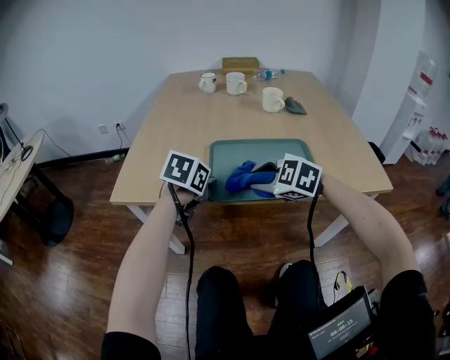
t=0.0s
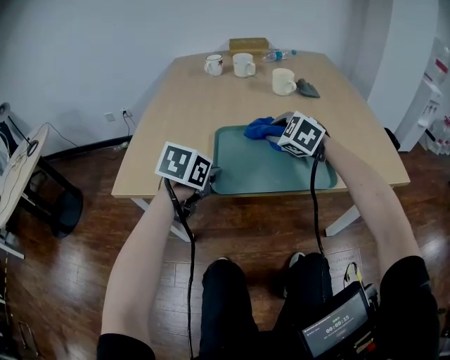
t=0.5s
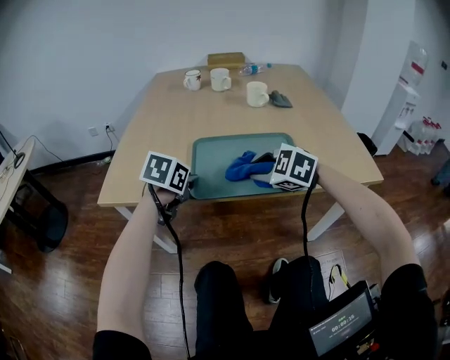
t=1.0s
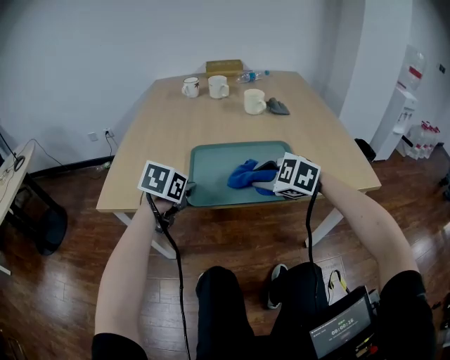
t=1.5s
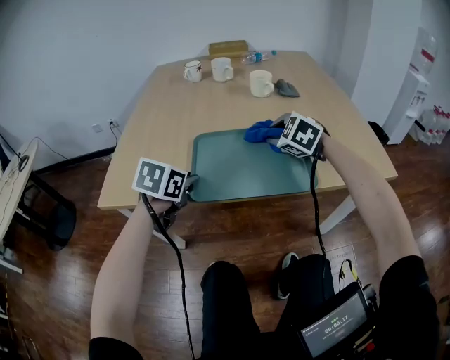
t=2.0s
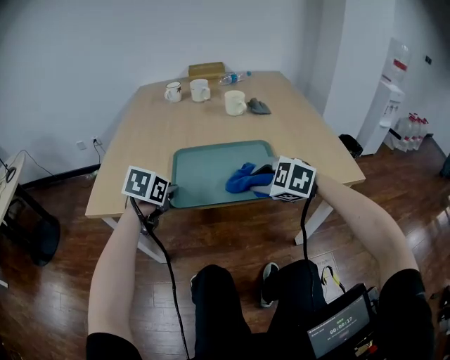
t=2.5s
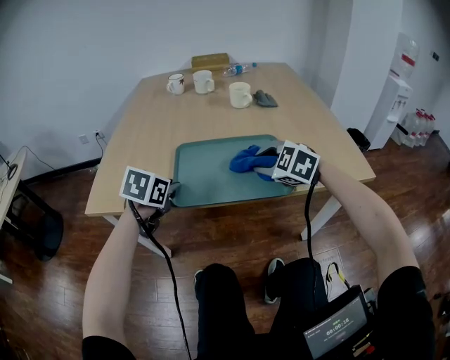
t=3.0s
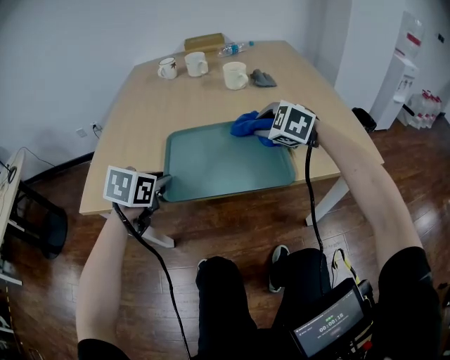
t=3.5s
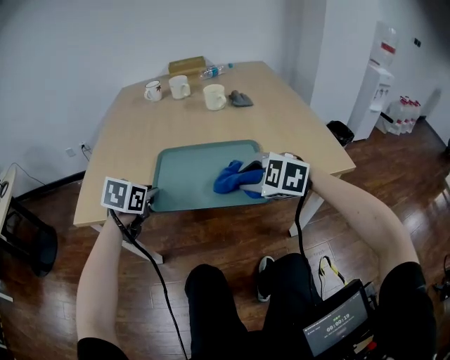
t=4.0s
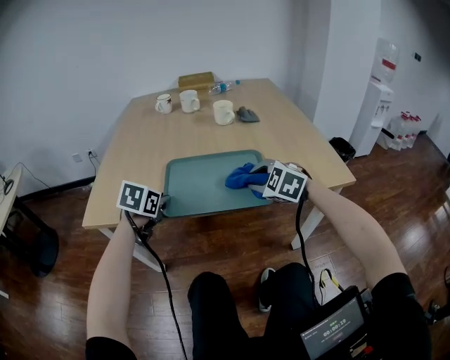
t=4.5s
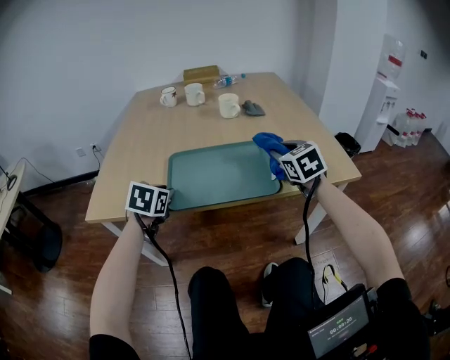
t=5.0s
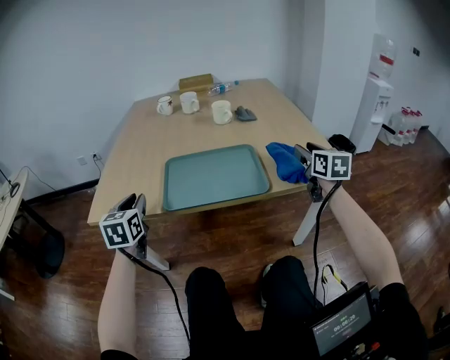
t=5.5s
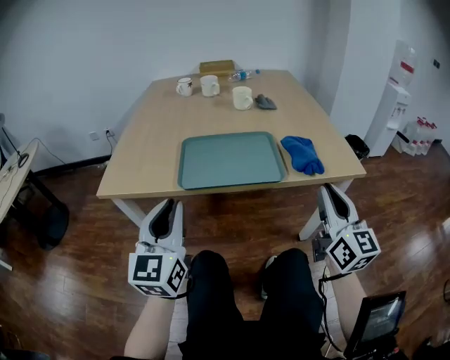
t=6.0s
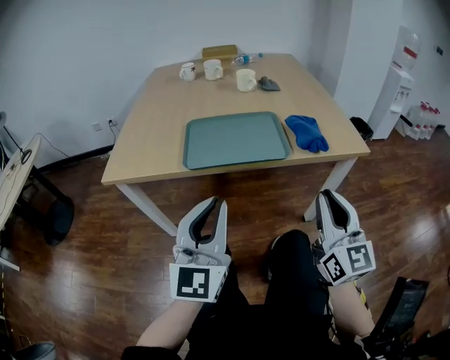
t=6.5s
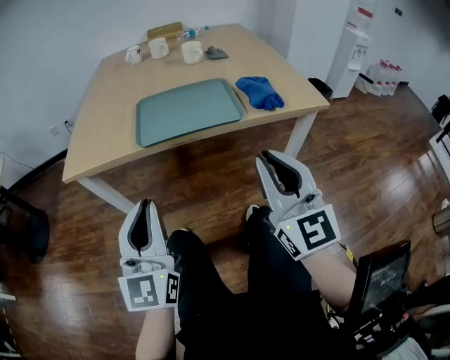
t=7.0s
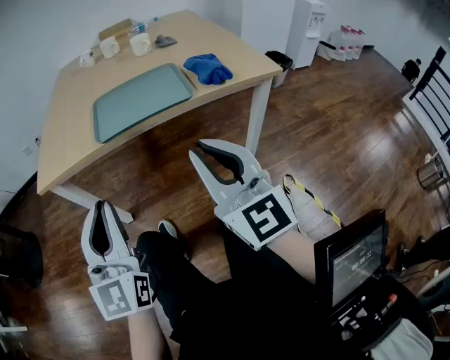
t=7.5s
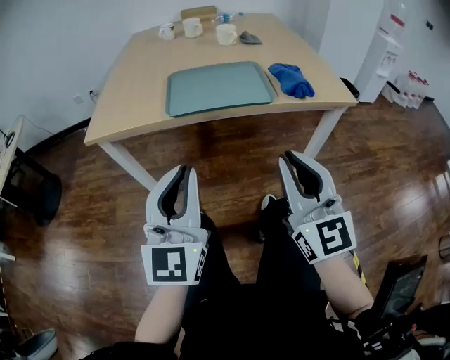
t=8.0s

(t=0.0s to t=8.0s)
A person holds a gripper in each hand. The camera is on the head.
t=0.0s - t=2.0s: The right gripper swings forward and backward, about 15 cm each way, with 2 reversals, and turns by roughly 20 degrees.
t=2.0s - t=4.0s: The right gripper goes forward and backward, some 15 cm each way, reversing 2 times.
t=4.0s - t=6.0s: The left gripper moves backward and upward, approximately 25 cm, and tilts its fingers about 50 degrees upward. The right gripper is displaced backward, to the right and upward by approximately 25 cm, and tilts its fingers about 50 degrees upward.
t=6.0s - t=8.0s: The left gripper heads backward and to the right, covering roughly 15 cm; the right gripper goes approximately 15 cm backward and to the left.

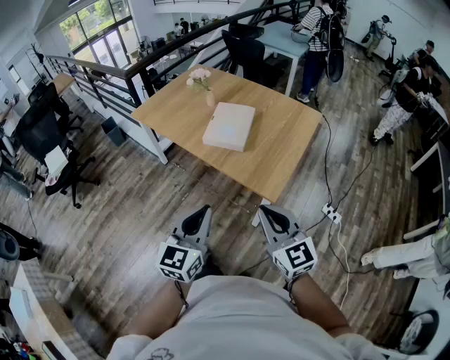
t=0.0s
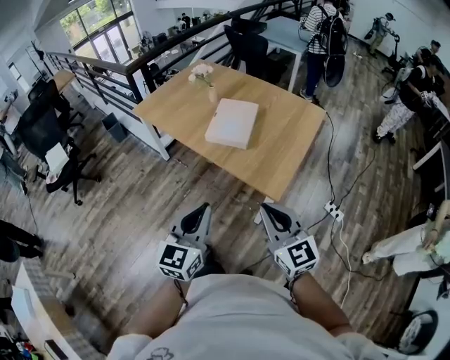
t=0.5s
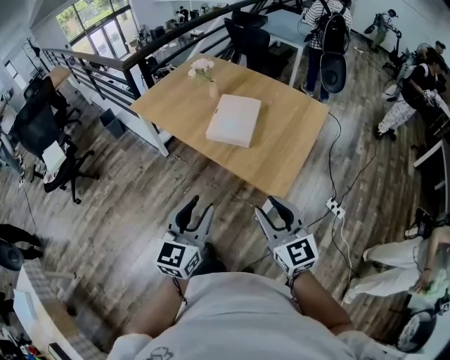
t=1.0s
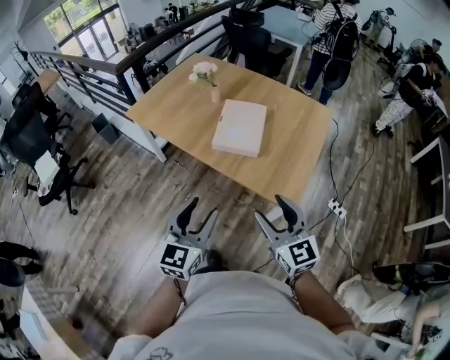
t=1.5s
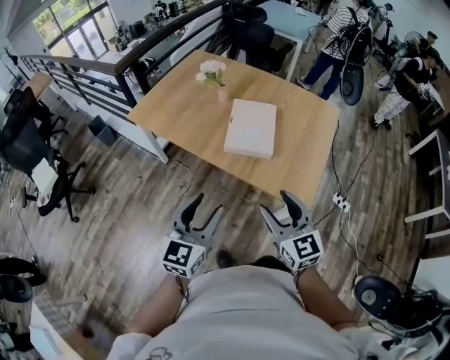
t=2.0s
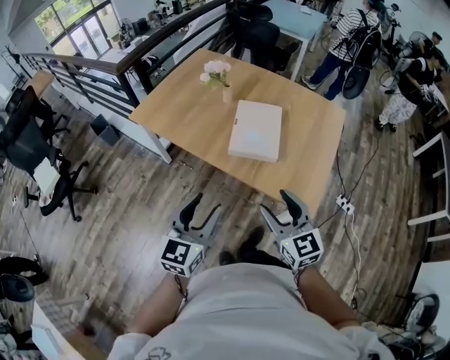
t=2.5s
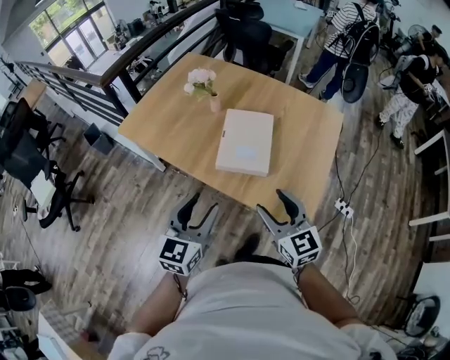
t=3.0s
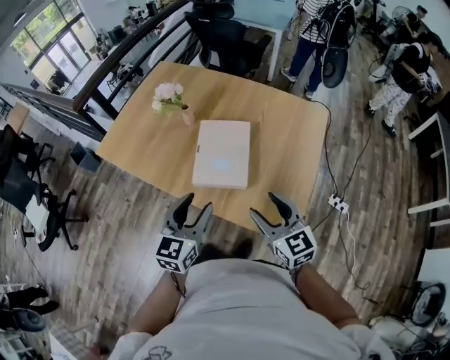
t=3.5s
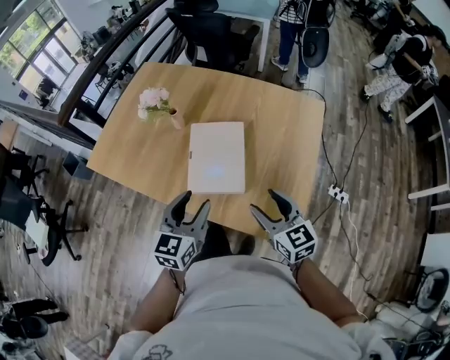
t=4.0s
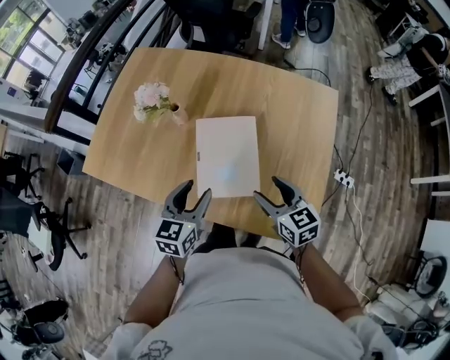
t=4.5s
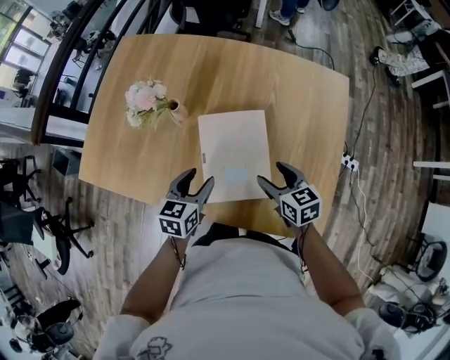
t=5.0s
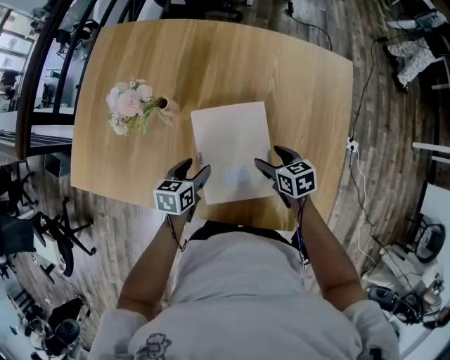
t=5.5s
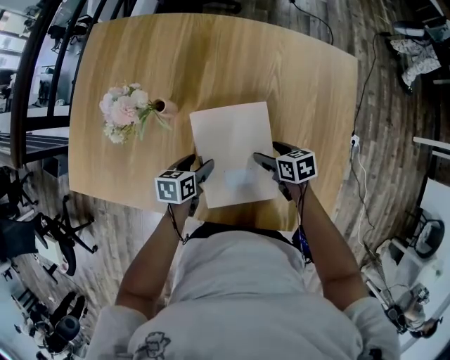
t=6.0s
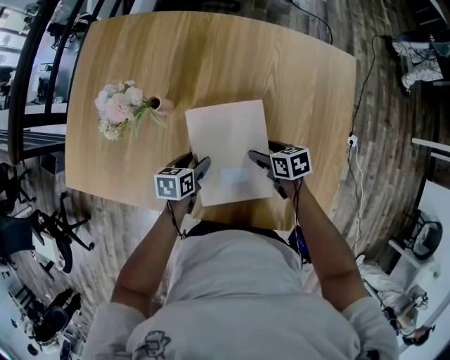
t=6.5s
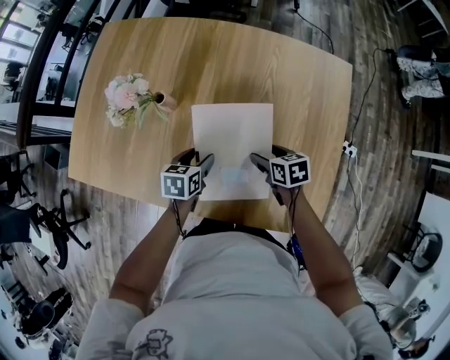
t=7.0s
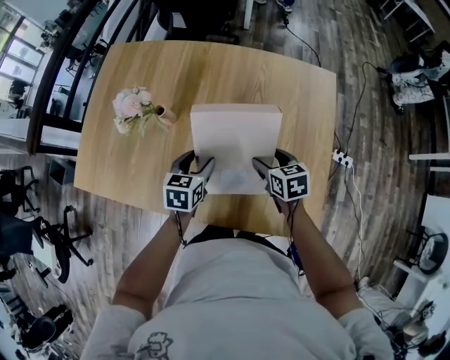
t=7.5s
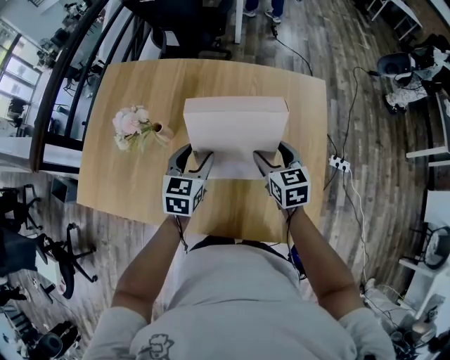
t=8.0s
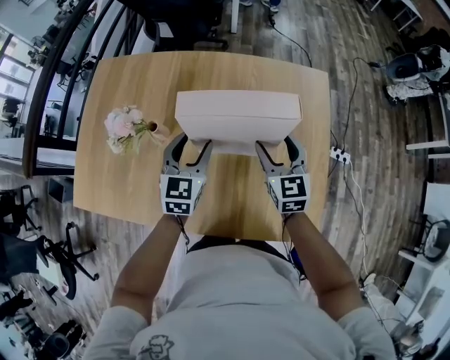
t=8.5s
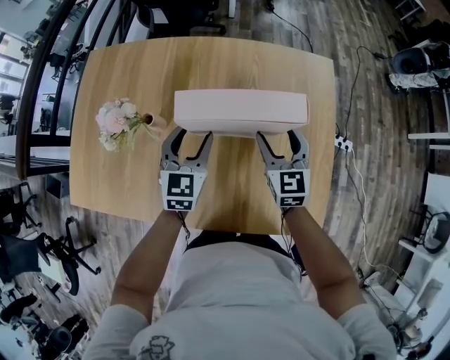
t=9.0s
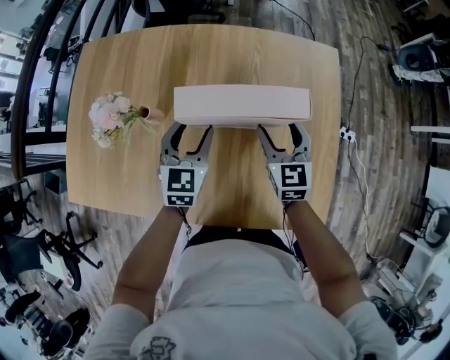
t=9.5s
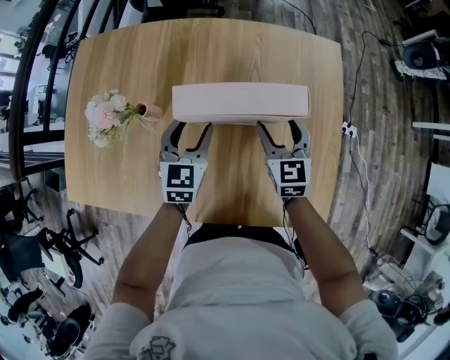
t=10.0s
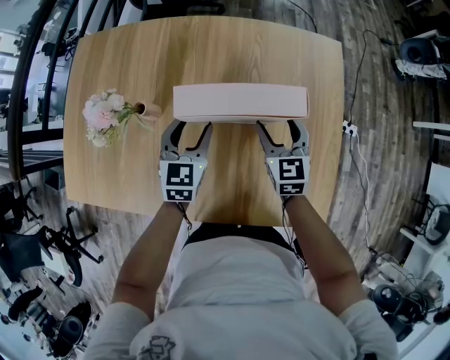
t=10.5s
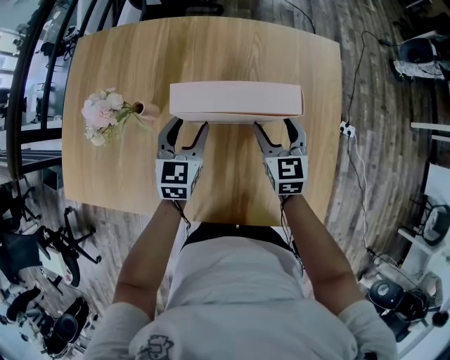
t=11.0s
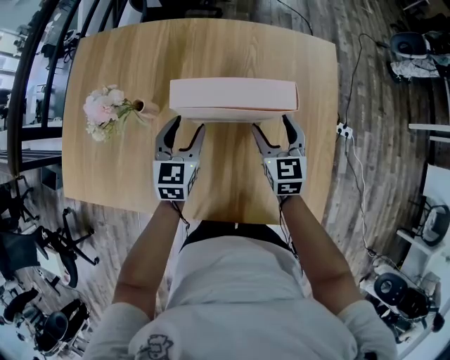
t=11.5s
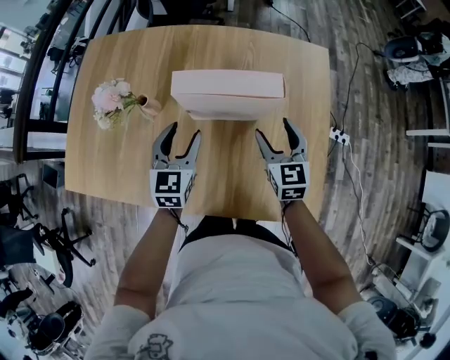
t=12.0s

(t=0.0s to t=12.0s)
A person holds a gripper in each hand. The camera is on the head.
t=0.0s - t=2.0s: Both grippers travel together forward and to the left, approximately 25 cm. The right gripper opens up. Meanwhile the left gripper opens up.
t=2.0s - t=4.0s: The two grippers go about 25 cm forward and to the right.
t=4.0s - t=6.0s: The grippers both shift downward and forward by some 35 cm. The right gripper angles its fingers downward, by roughly 30 degrees, while the left gripper turns by approximately 50 degrees.
t=6.0s - t=8.0s: The two grippers go approximately 20 cm upward. The left gripper rotates some 40 degrees. The right gripper swivels roughly 40 degrees.
t=8.0s - t=10.0s: The left gripper shifts by about 5 cm. Meanwhile the right gripper ends up roughly 5 cm from where it was.
t=10.0s - t=12.0s: The grippers both shift backward by approximately 5 cm.

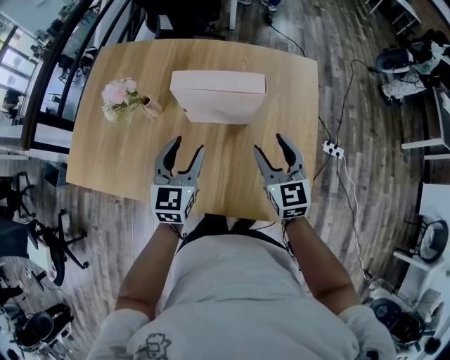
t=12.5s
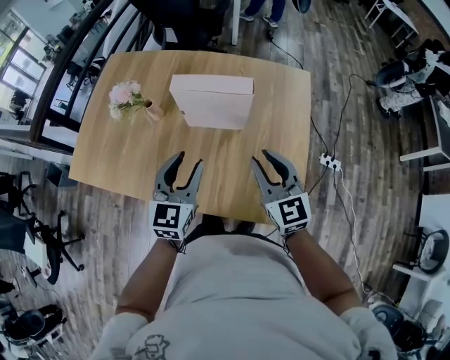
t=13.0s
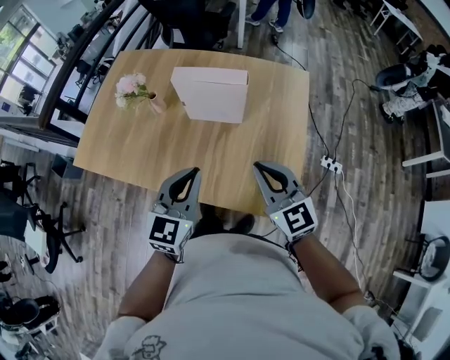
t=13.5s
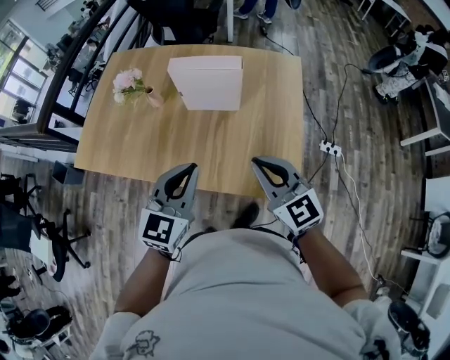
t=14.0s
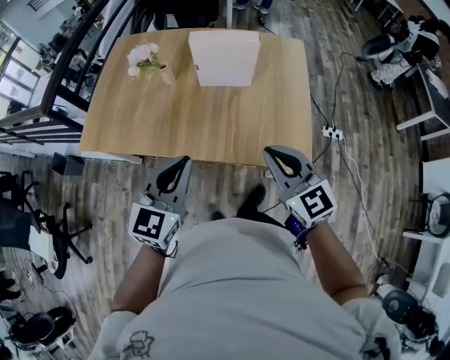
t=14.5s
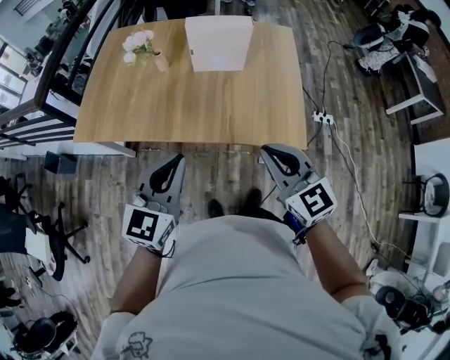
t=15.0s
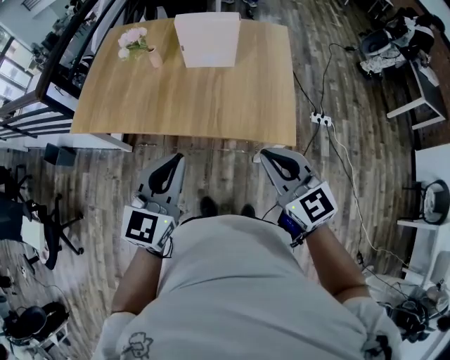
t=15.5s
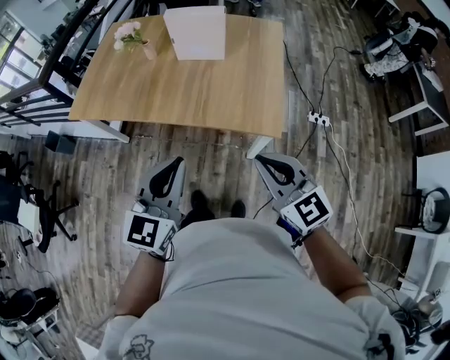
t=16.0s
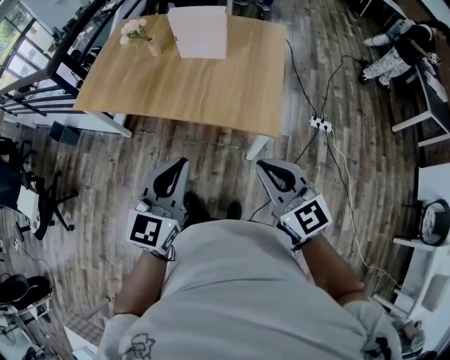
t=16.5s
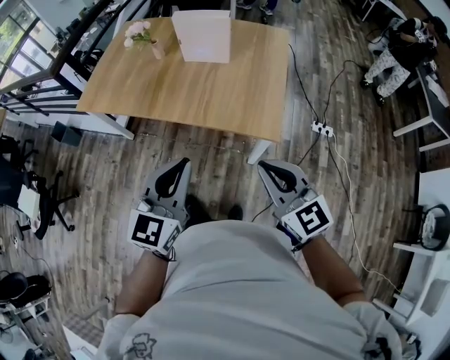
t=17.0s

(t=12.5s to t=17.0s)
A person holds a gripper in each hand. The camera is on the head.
t=12.5s - t=14.5s: The two grippers go some 25 cm backward. The left gripper closes up. The right gripper closes.
t=14.5s - t=17.0s: The two grippers go some 25 cm backward and to the right.

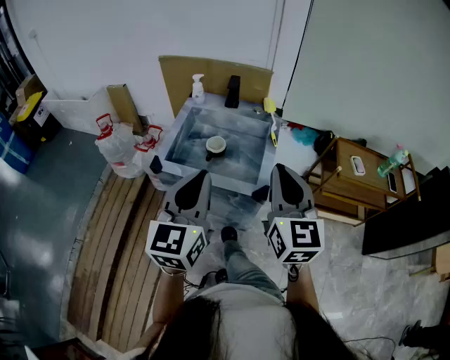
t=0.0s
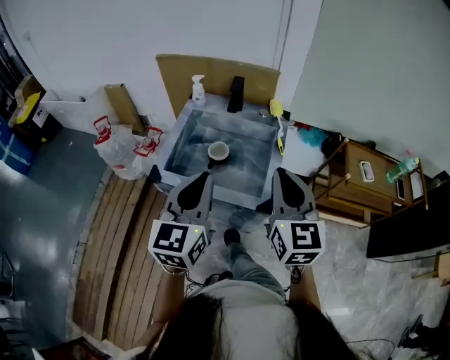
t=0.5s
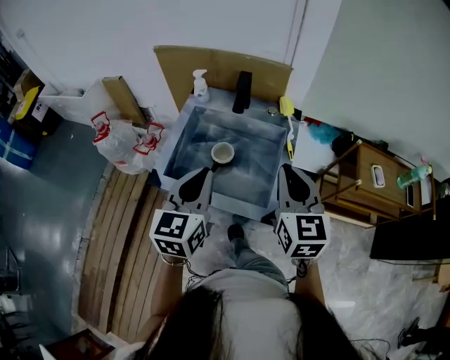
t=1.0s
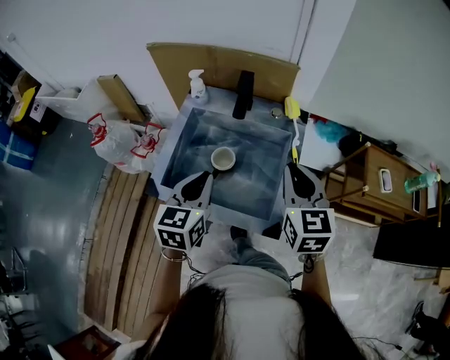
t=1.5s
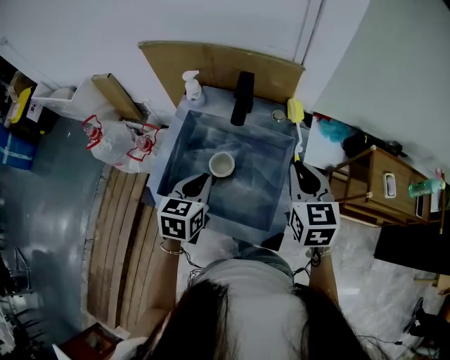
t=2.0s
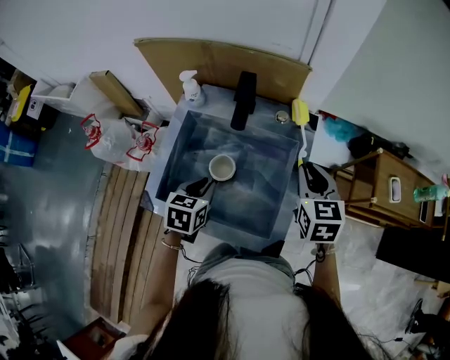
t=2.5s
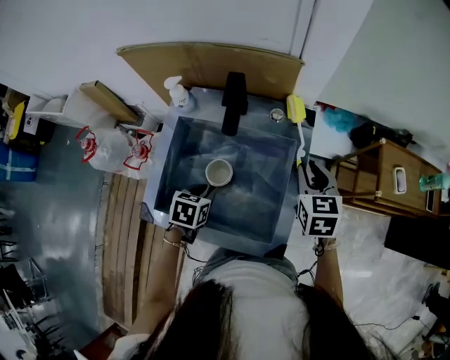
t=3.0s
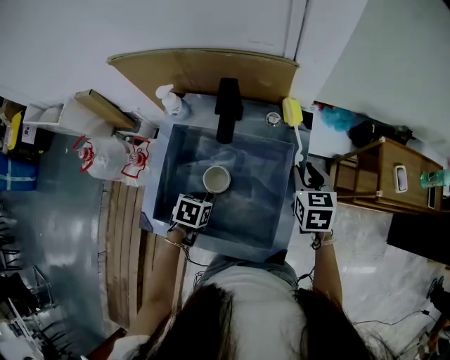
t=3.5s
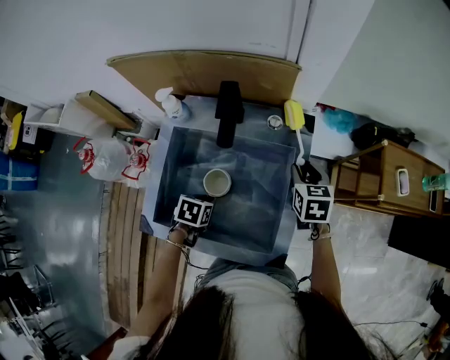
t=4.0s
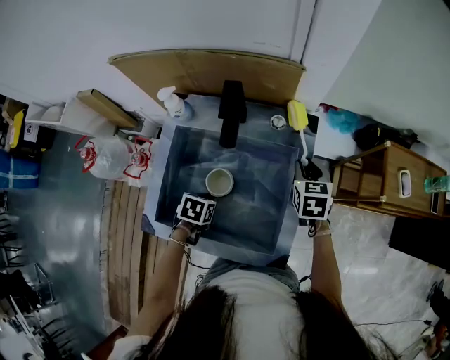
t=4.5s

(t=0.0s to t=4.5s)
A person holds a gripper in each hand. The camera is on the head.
t=0.0s - t=2.0s: Both grippers move forward and downward, about 35 cm. The left gripper tilts its fingers about 30 degrees downward; the right gripper turns by roughly 30 degrees.
t=2.0s - t=4.5s: The left gripper moves downward, about 20 cm, and angles its fingers downward, by approximately 40 degrees, while the right gripper is displaced downward and forward by about 20 cm, swivels some 20 degrees, and opens up.
